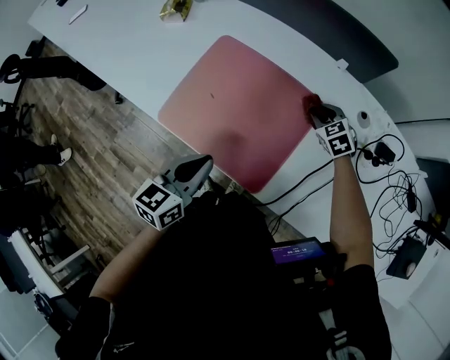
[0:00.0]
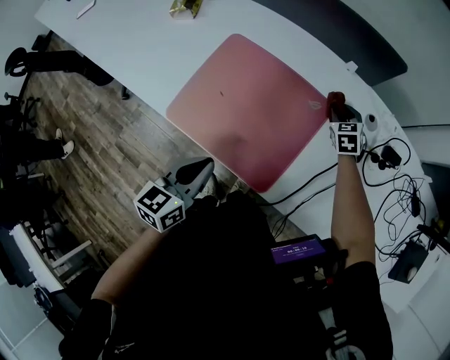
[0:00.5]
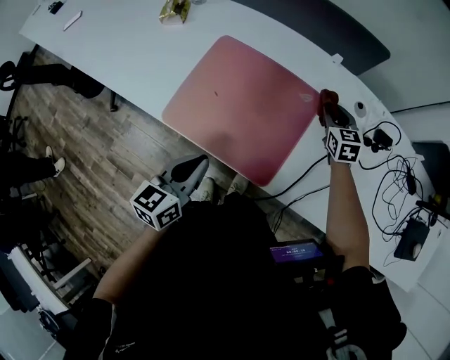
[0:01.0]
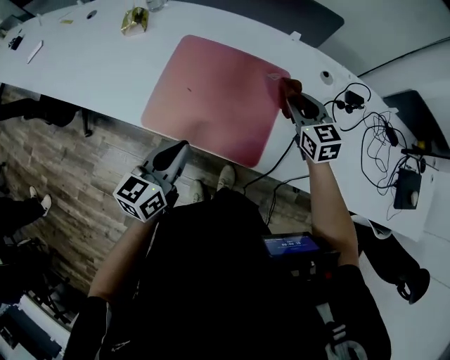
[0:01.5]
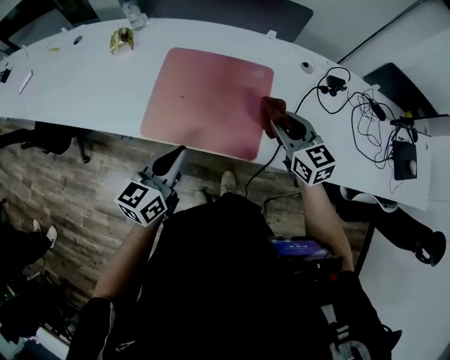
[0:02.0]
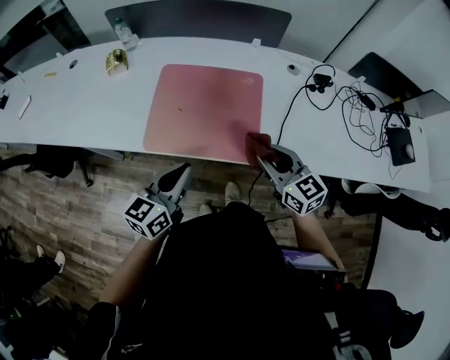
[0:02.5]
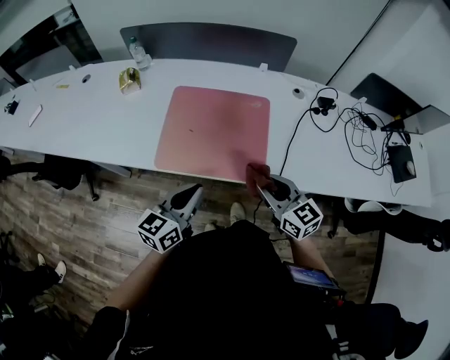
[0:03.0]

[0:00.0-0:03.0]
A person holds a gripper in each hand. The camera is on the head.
0:00.0 to 0:01.5: The left gripper goes some 5 cm to the left. Meanwhile the right gripper travels upward and backward by about 20 cm, and swivels roughly 40 degrees.
0:01.5 to 0:03.0: The right gripper travels backward by some 25 cm; the left gripper is displaced backward by about 5 cm.

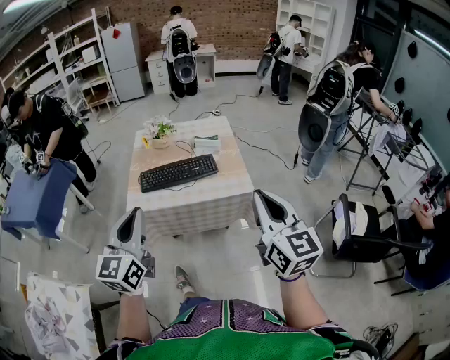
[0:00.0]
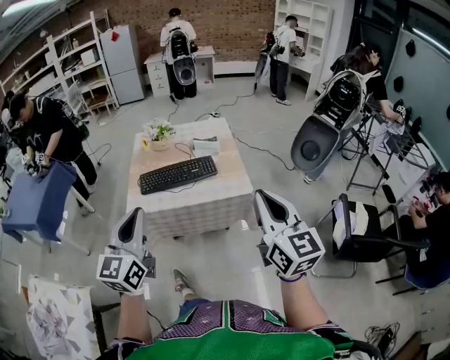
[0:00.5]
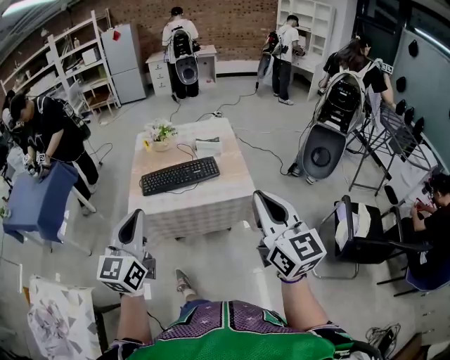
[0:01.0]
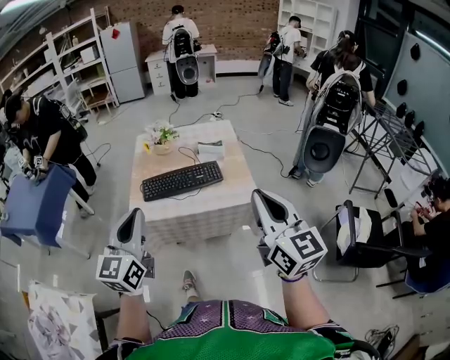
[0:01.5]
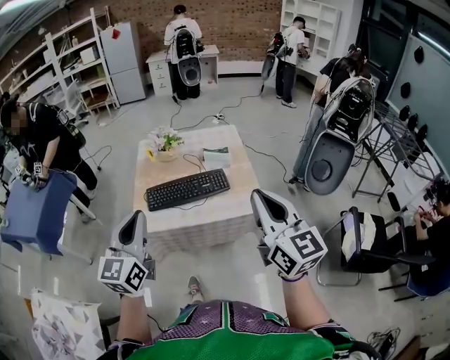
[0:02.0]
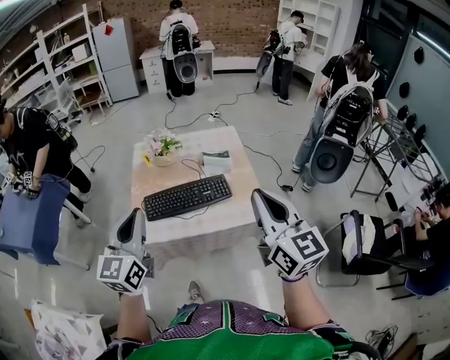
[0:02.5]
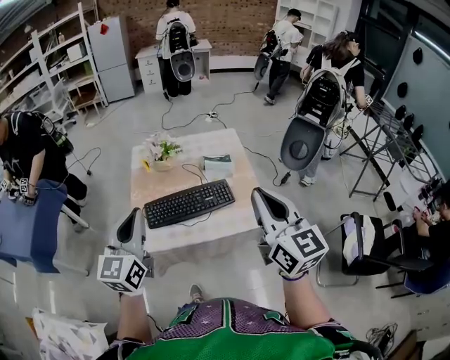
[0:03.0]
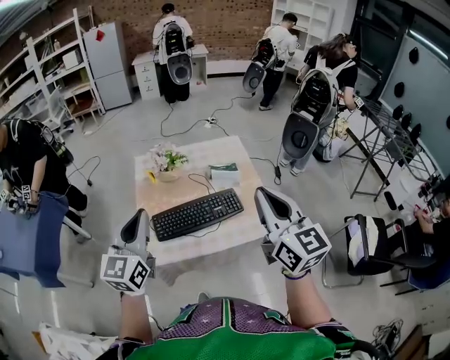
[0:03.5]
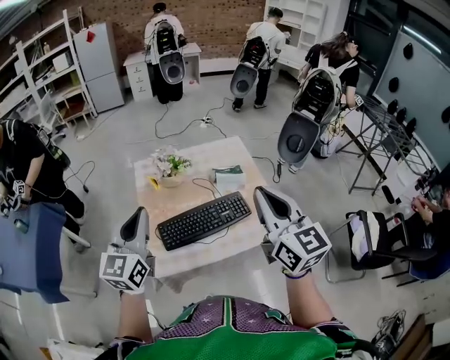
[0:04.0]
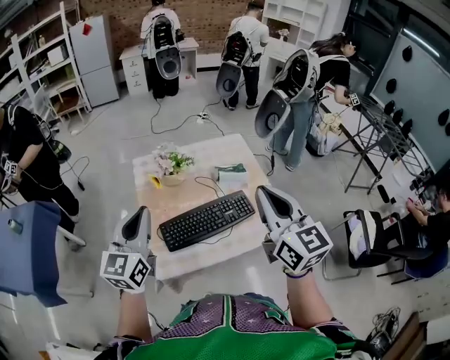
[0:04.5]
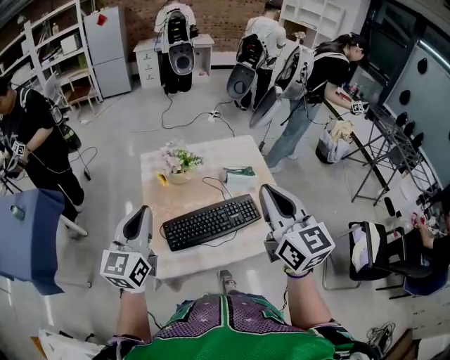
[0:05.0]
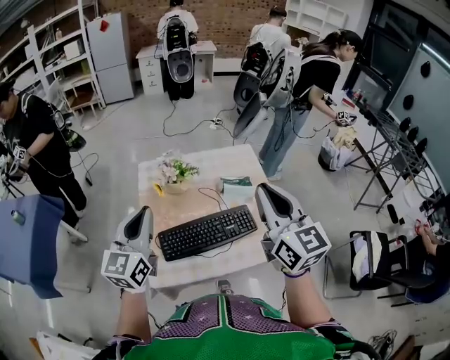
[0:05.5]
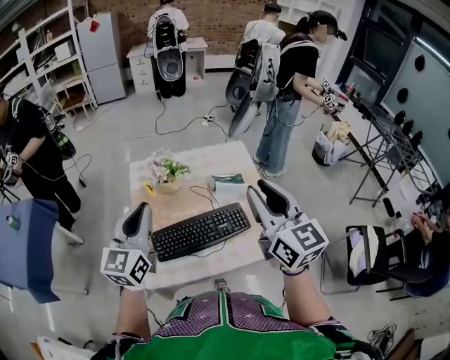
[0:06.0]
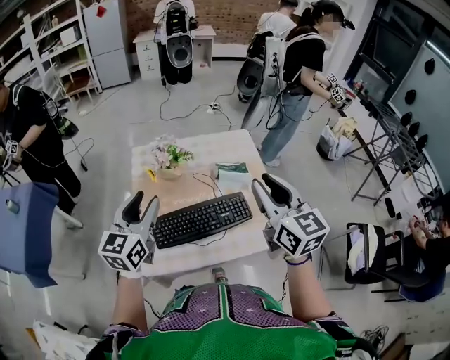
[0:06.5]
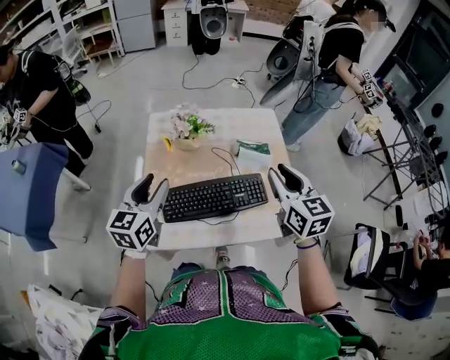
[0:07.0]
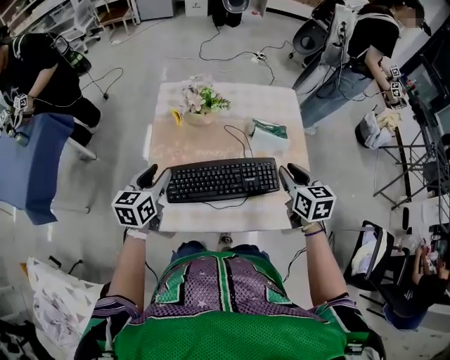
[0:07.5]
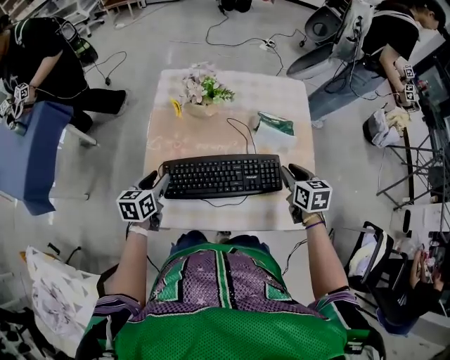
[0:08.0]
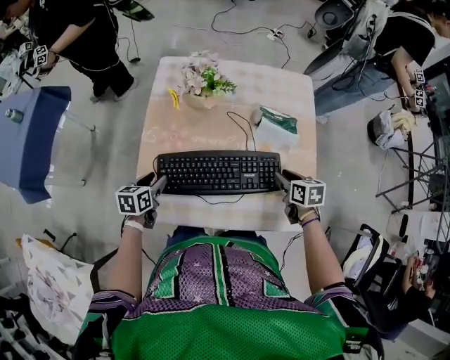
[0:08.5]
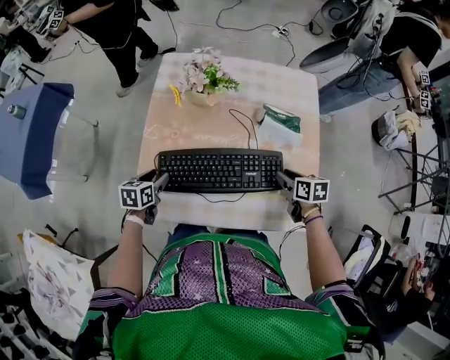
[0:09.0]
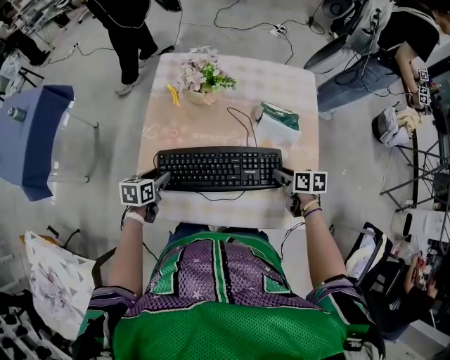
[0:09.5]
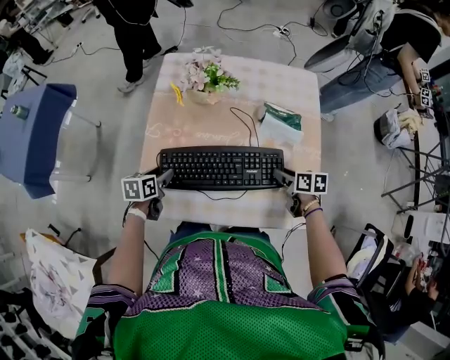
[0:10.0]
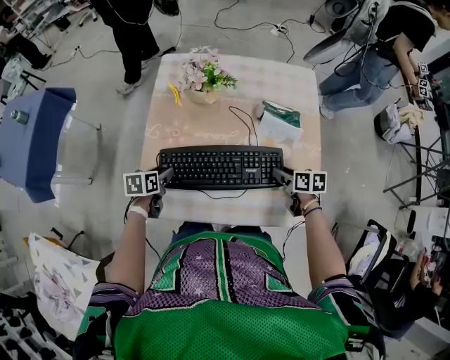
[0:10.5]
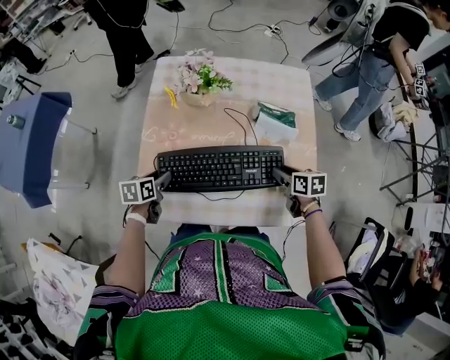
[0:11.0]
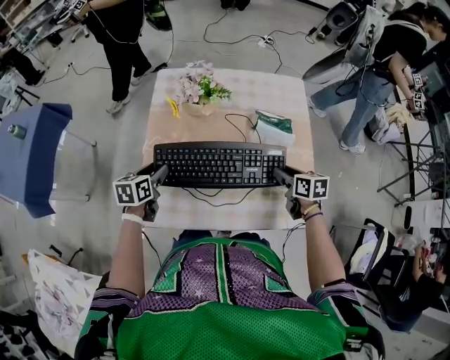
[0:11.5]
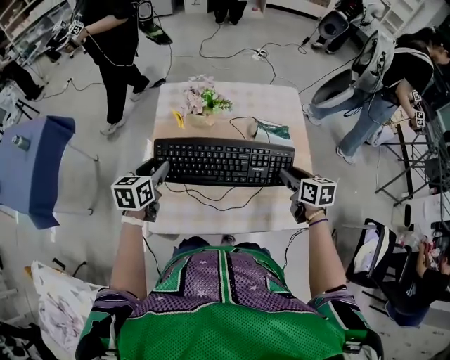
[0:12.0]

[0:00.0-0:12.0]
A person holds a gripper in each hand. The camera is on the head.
0:00.0 to 0:02.0: The right gripper goes approximately 10 cm forward and to the left. The left gripper moves forward, roughly 10 cm.
0:02.0 to 0:04.0: The two grippers go some 25 cm forward and to the left.
0:04.0 to 0:06.0: The two grippers go approximately 10 cm forward. The right gripper opens its fingers.
0:06.0 to 0:08.0: Both grippers travel together downward, about 35 cm. The left gripper tips its fingers downward by about 40 degrees, and opens its fingers. The right gripper angles its fingers downward, by approximately 40 degrees.
0:08.0 to 0:10.0: The grippers both shift downward by some 10 cm. The right gripper rotates approximately 30 degrees.
0:10.0 to 0:12.0: Both grippers move upward, roughly 15 cm. The left gripper changes its angle by about 20 degrees, while the right gripper rotates approximately 20 degrees.

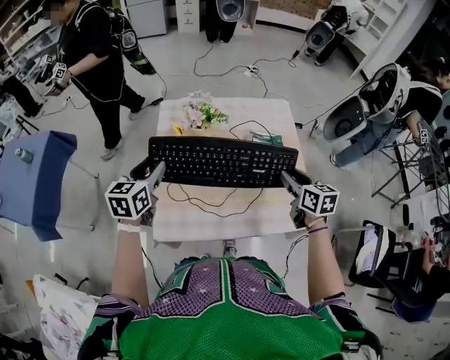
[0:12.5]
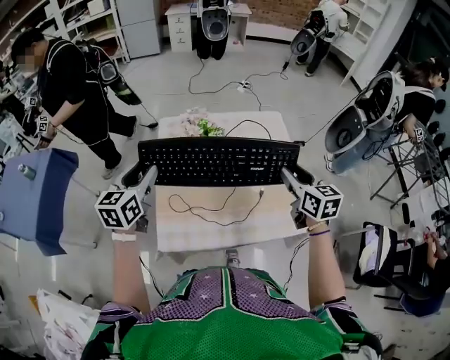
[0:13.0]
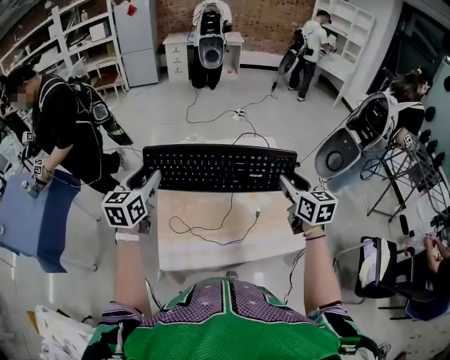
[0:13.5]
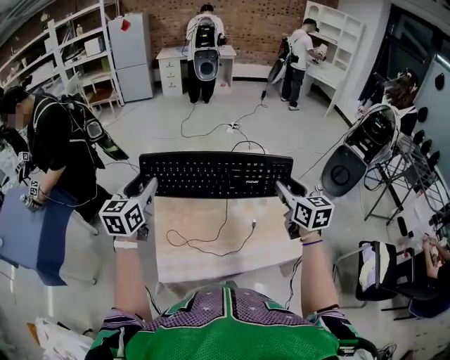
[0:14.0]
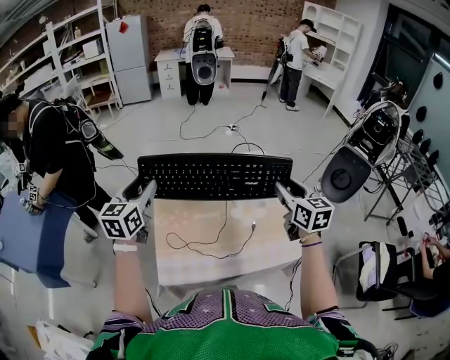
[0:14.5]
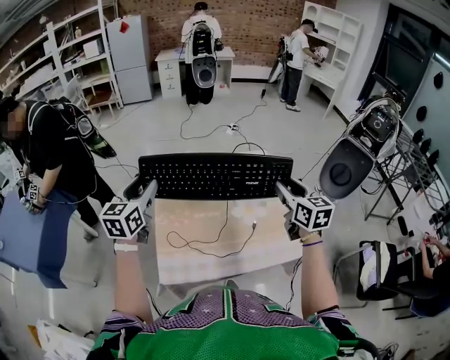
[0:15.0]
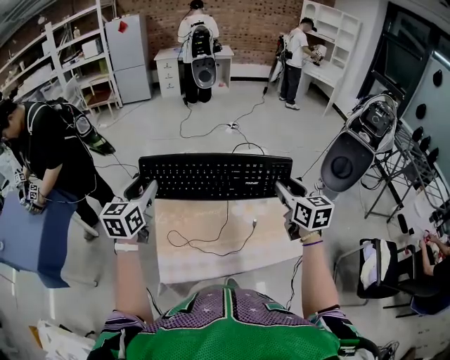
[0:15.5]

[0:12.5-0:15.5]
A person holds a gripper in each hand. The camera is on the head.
0:12.5 to 0:14.0: Both grippers travel together upward, approximately 15 cm. The right gripper changes its angle by roughly 20 degrees.
0:14.0 to 0:15.5: The two grippers keep their place.

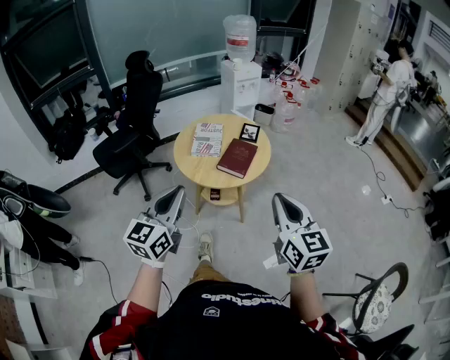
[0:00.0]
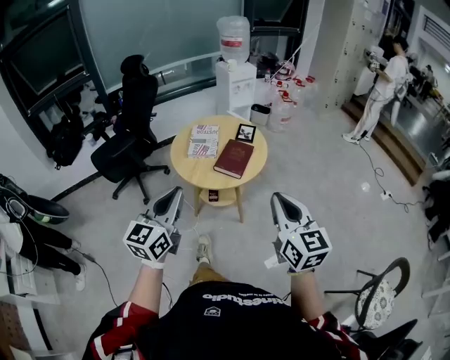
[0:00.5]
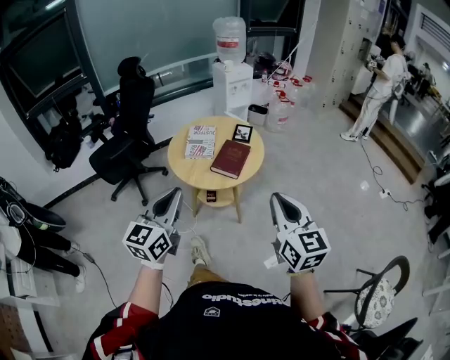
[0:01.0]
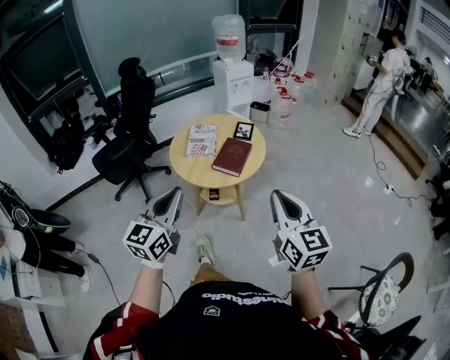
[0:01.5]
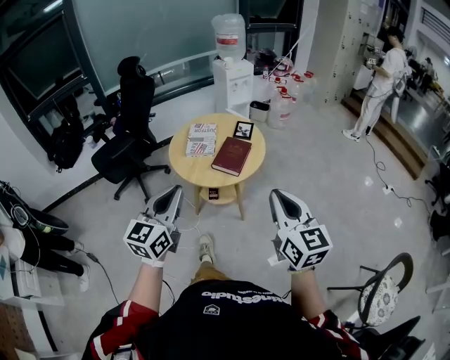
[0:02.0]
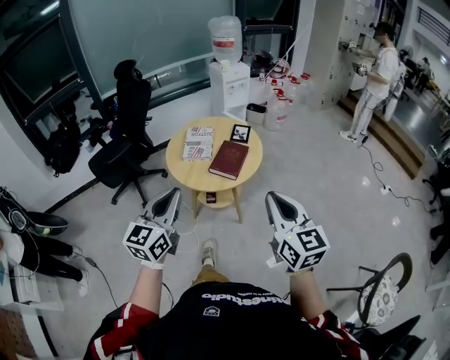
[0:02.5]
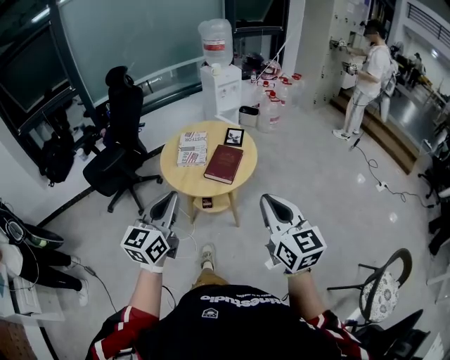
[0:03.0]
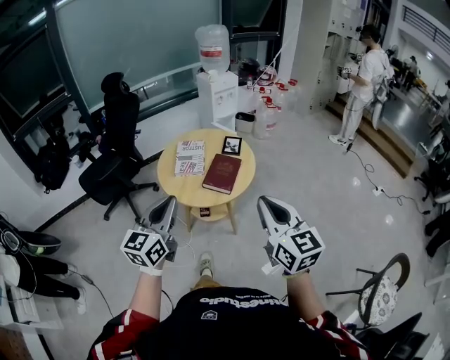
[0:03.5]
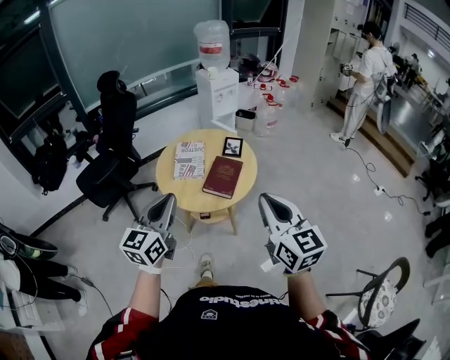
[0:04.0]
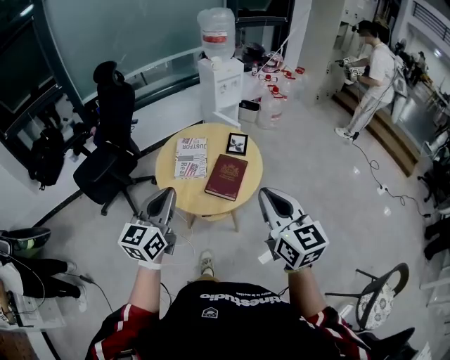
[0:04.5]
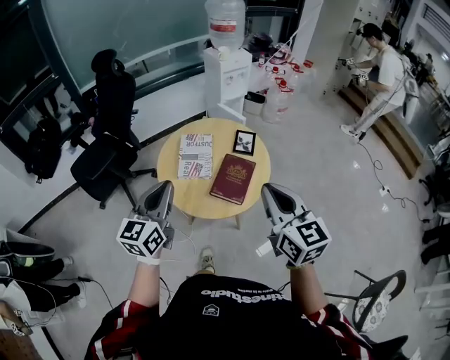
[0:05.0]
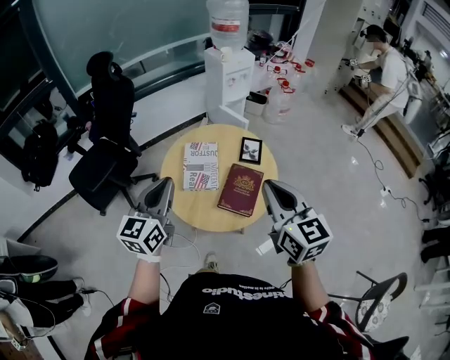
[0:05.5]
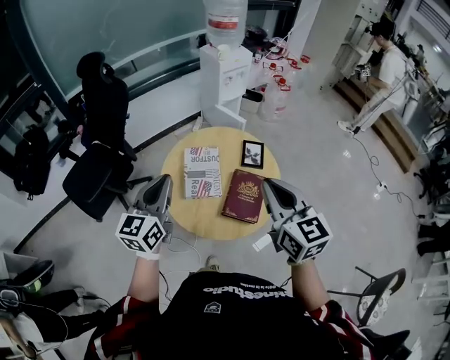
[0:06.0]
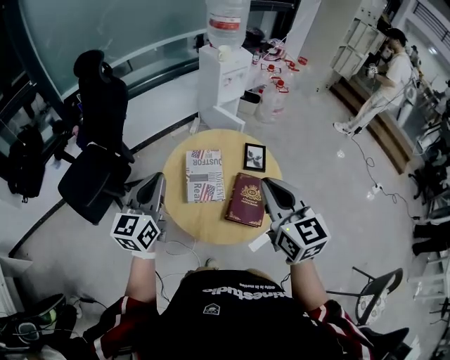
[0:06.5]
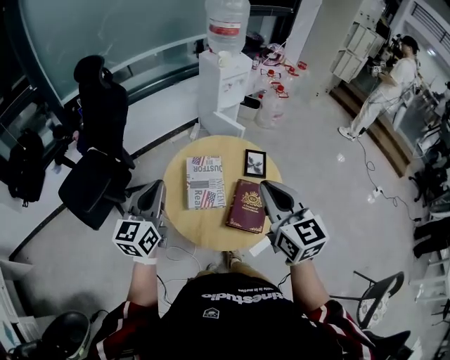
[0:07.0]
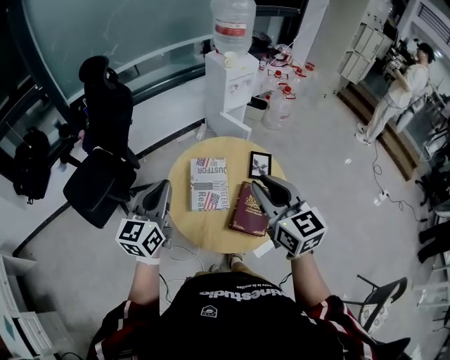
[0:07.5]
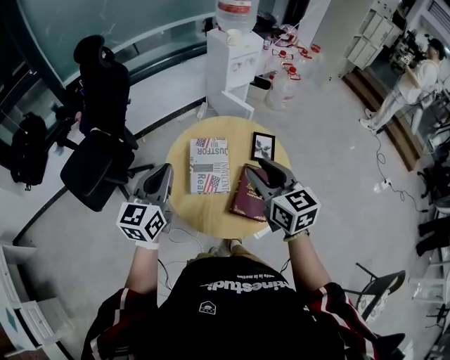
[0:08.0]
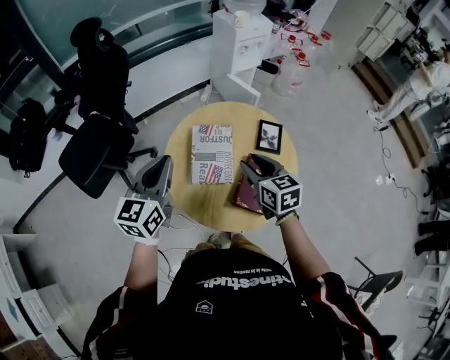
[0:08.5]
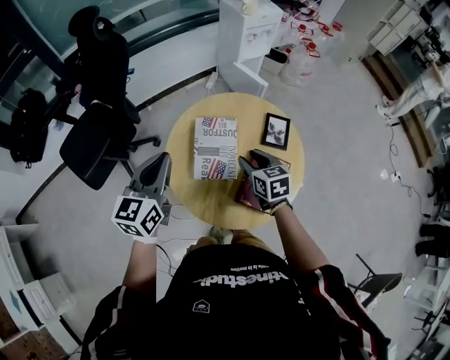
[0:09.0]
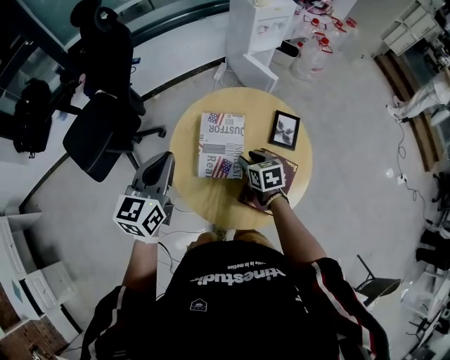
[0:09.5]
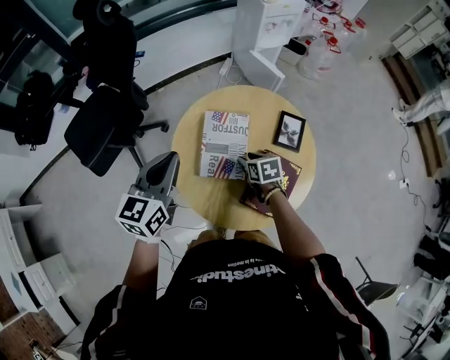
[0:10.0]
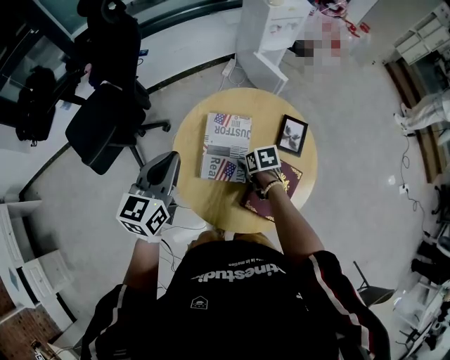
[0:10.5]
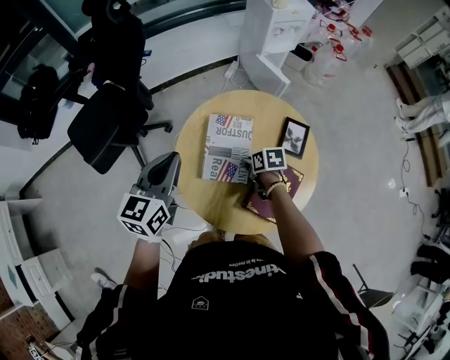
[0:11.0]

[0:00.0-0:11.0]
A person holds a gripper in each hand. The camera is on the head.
0:00.0 to 0:02.0: There are only small adjustments of the grippers.
0:02.0 to 0:03.5: The grippers both shift forward by roughly 5 cm.
0:03.5 to 0:05.5: The two grippers go some 30 cm forward.
0:05.5 to 0:07.5: Both grippers travel together forward and to the left, approximately 15 cm. The right gripper opens.
0:07.5 to 0:09.0: The left gripper travels downward by approximately 10 cm, while the right gripper is displaced downward by approximately 25 cm, and changes its angle by approximately 30 degrees.
0:09.0 to 0:11.0: The right gripper goes approximately 15 cm downward, and turns by about 30 degrees.
